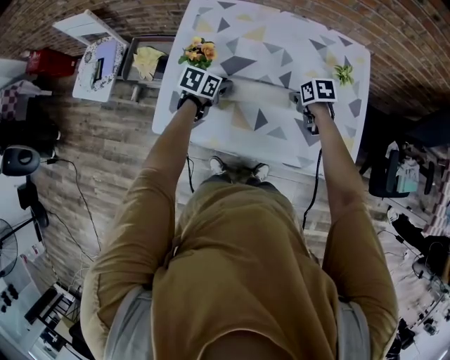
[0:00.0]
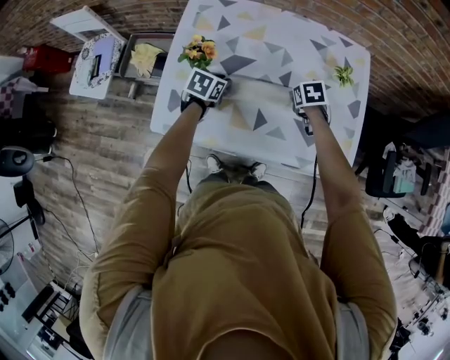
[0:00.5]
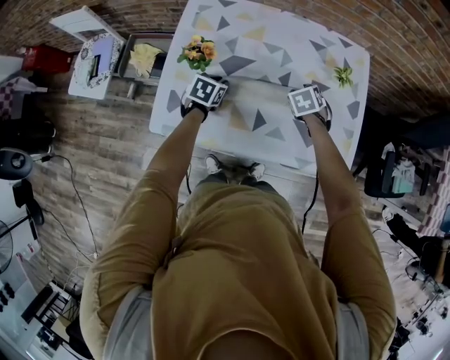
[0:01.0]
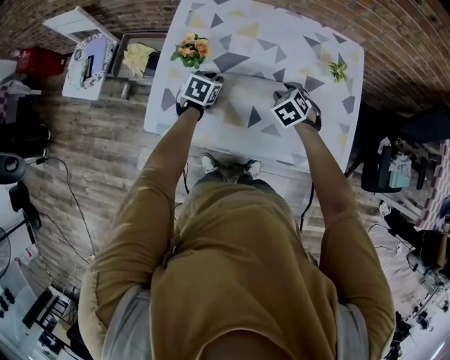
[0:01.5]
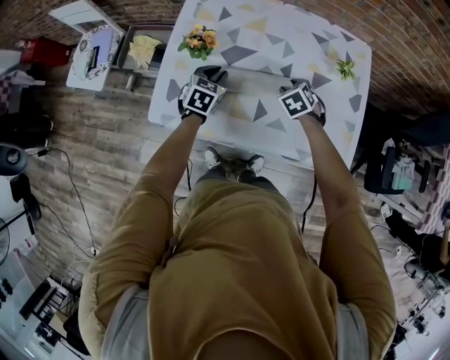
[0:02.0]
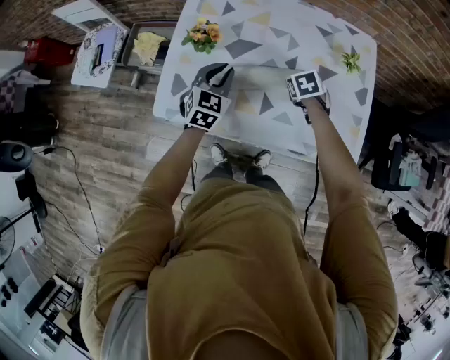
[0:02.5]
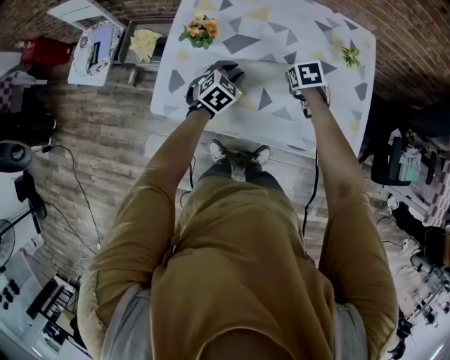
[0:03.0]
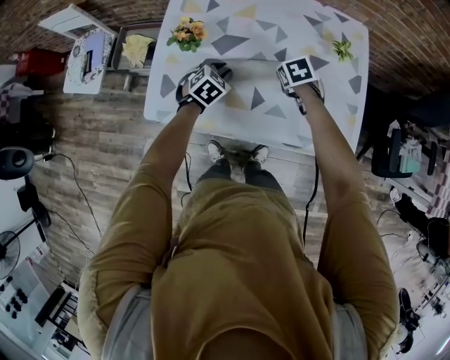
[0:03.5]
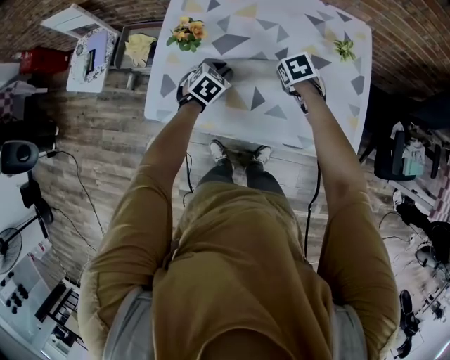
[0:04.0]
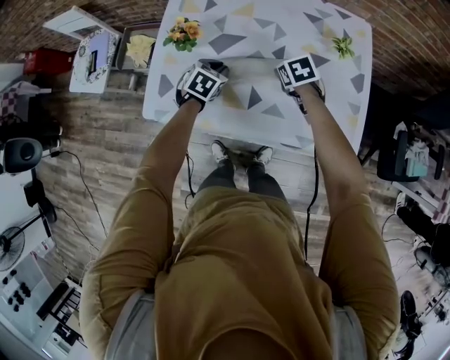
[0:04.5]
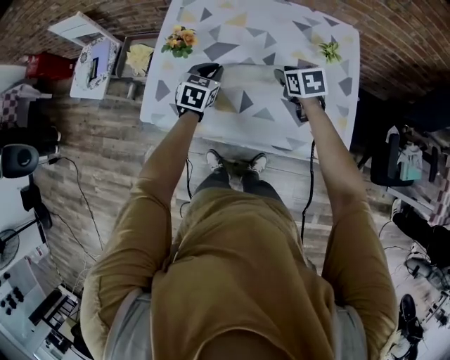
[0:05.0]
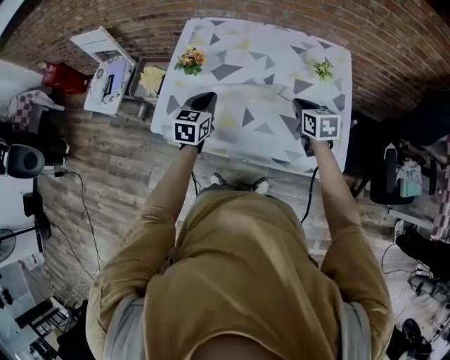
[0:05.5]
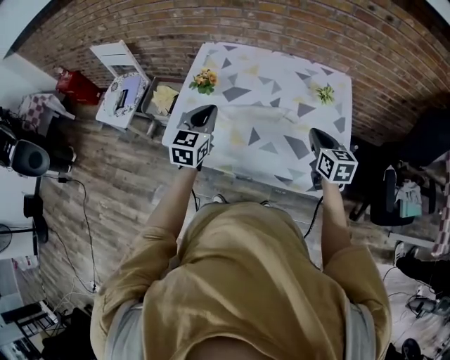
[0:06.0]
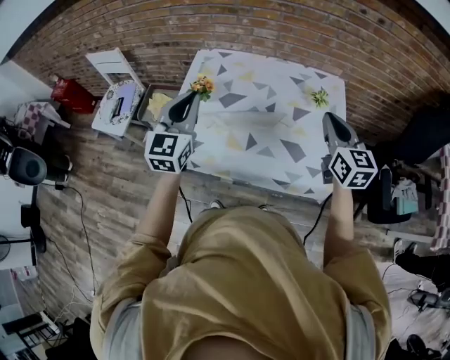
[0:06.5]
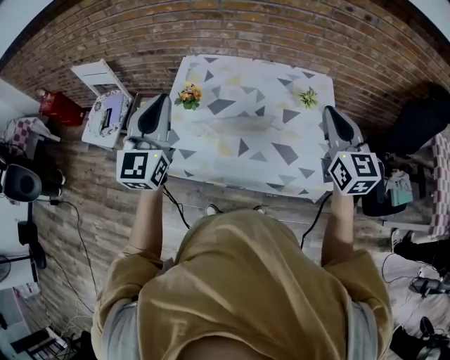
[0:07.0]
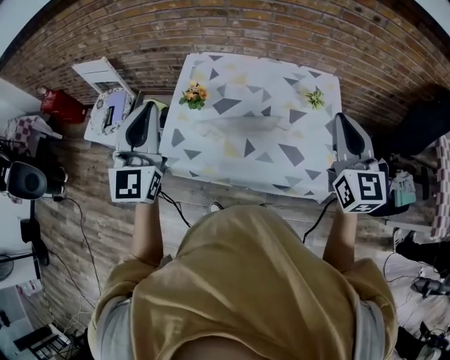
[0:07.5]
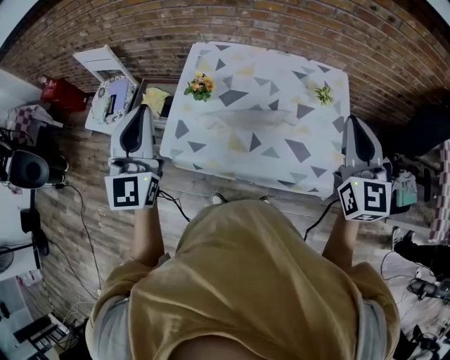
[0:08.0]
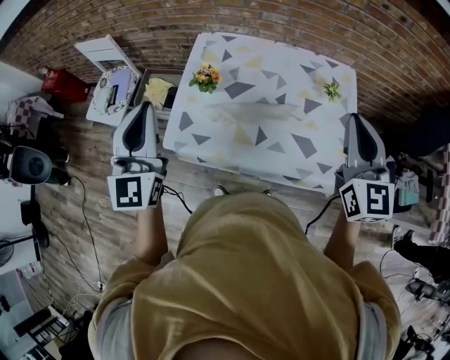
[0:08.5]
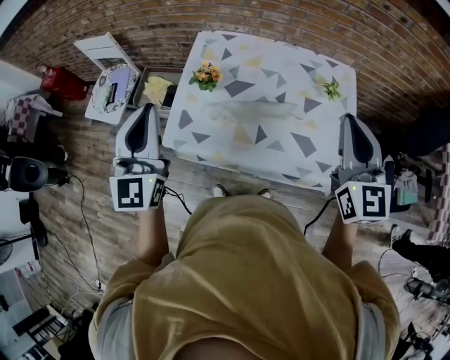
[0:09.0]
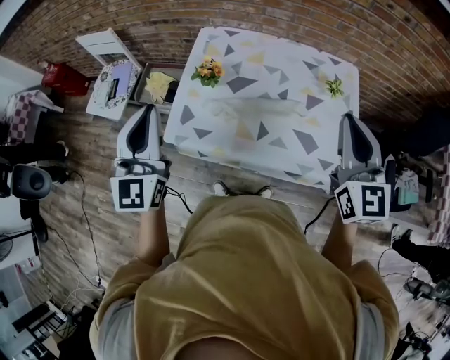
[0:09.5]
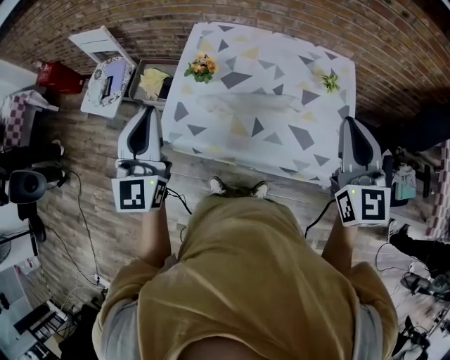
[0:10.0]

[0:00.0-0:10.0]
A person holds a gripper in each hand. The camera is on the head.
0:00.0 to 0:02.0: The right gripper swivels roughly 40 degrees. Meanwhile the left gripper turns by about 30 degrees.
0:02.0 to 0:04.0: The left gripper shifts by about 5 cm, and rotates about 20 degrees.
0:04.0 to 0:06.0: The right gripper shifts some 25 cm upward, backward and to the right, and tips its fingers upward by approximately 50 degrees; the left gripper shifts roughly 20 cm upward, and tilts its fingers about 40 degrees upward.
0:06.0 to 0:08.0: The left gripper goes some 25 cm upward and to the left, and turns by some 30 degrees, while the right gripper heads upward, covering roughly 25 cm, and swivels about 30 degrees.
0:08.0 to 0:10.0: There are only small adjustments of the grippers.

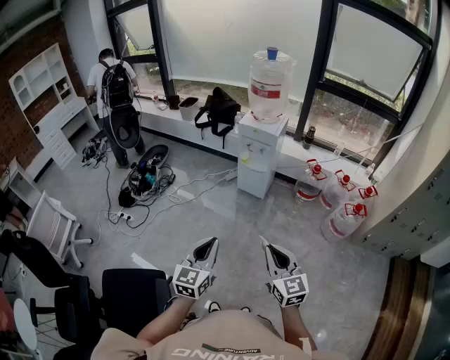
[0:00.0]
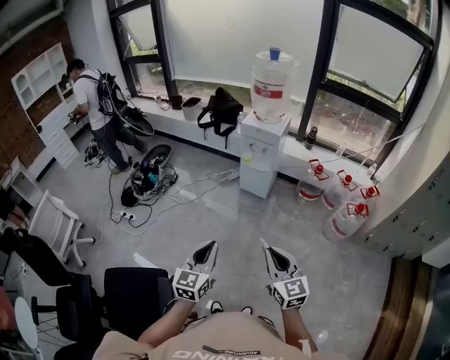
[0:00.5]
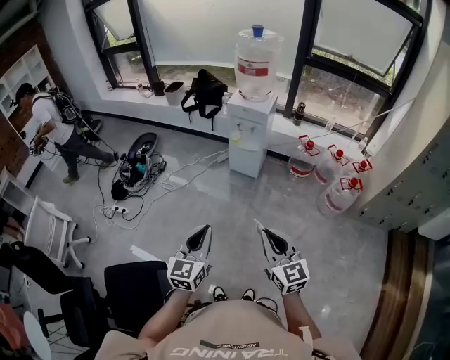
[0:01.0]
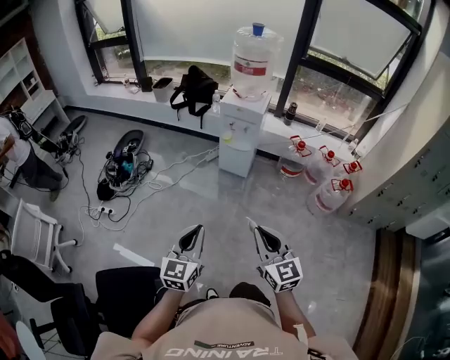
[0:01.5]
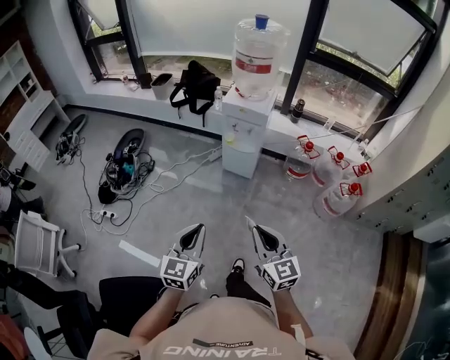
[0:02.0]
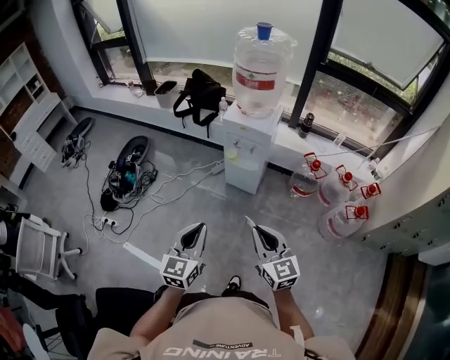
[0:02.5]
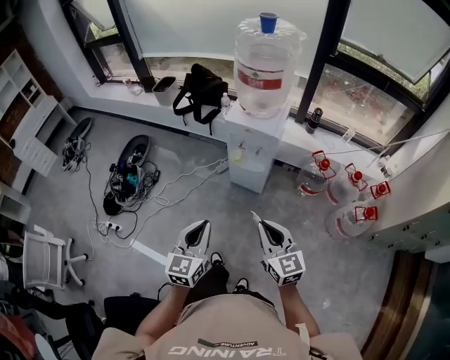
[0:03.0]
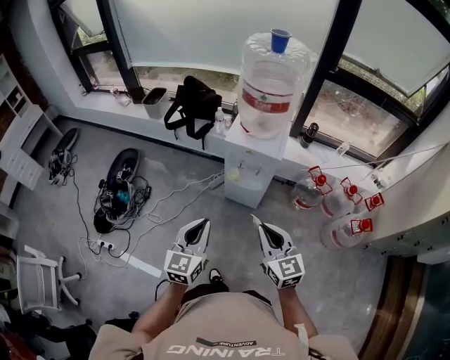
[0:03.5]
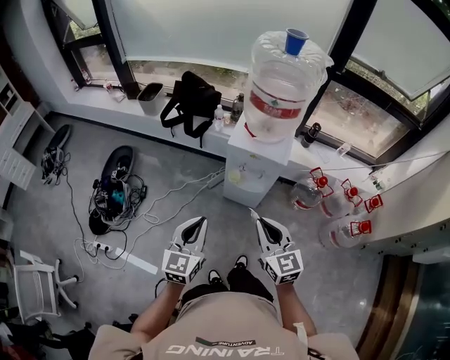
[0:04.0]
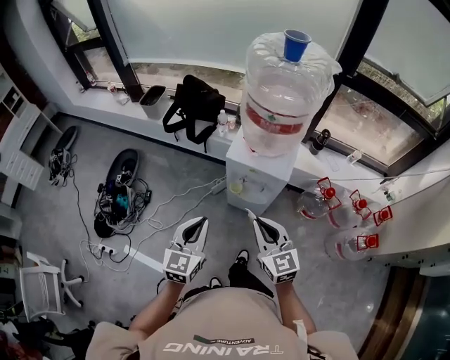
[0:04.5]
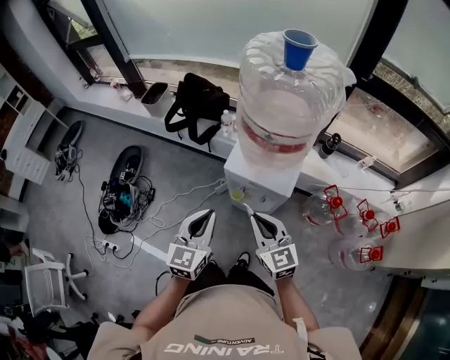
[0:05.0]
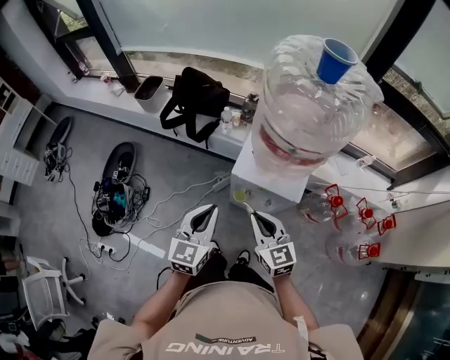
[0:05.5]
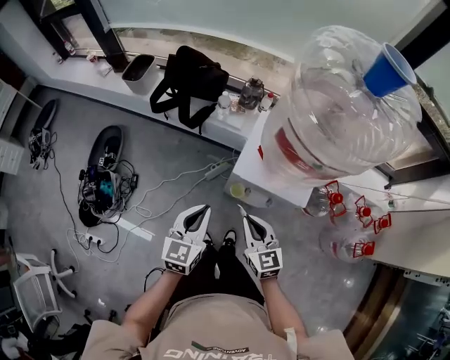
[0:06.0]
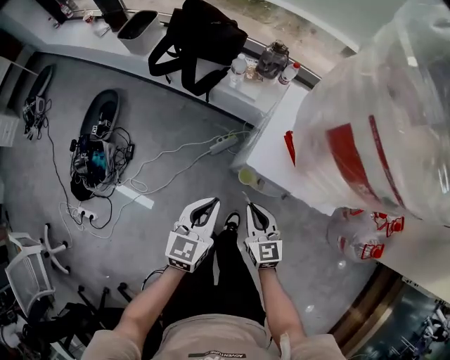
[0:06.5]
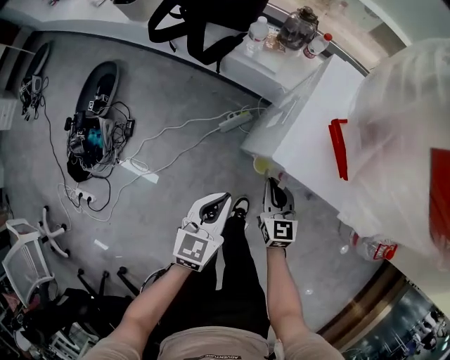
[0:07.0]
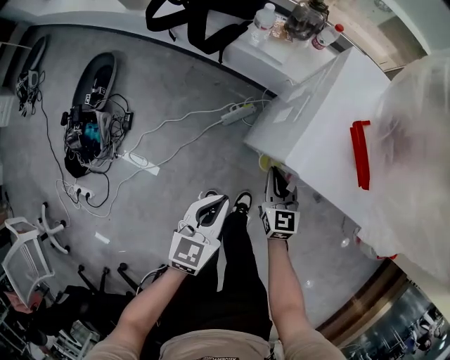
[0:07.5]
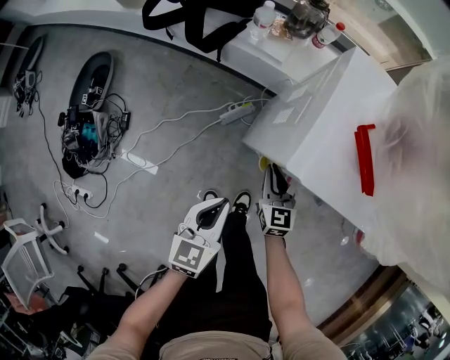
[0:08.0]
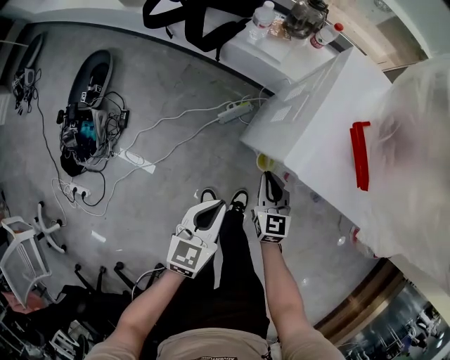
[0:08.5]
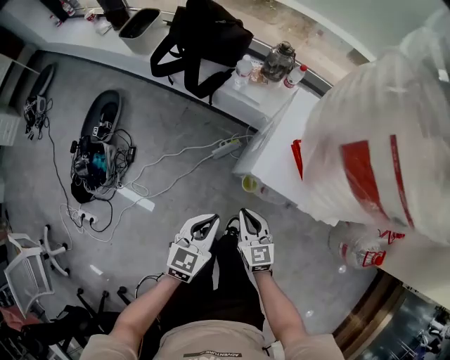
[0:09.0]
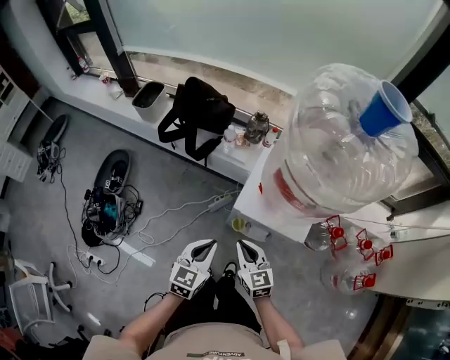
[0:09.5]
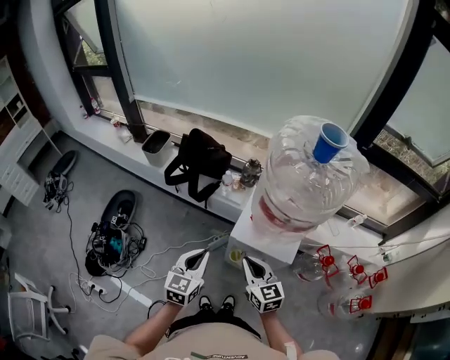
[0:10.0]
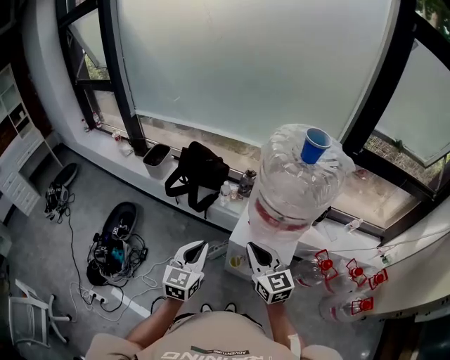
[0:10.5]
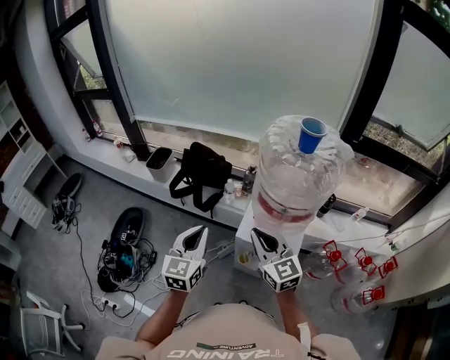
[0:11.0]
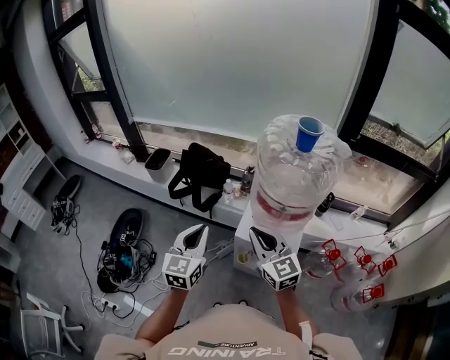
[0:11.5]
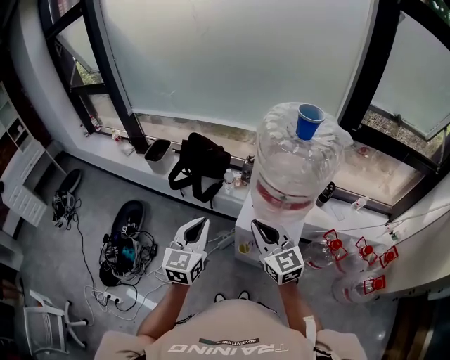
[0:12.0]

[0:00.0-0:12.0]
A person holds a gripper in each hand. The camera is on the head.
0:00.0 to 0:02.0: The left gripper shifts some 15 cm forward. Meanwhile the right gripper shifts approximately 15 cm forward and to the left.
0:02.0 to 0:04.0: The two grippers go approximately 40 cm forward.
0:04.0 to 0:06.0: The right gripper heads forward and downward, covering approximately 30 cm, while the left gripper heads forward, covering about 25 cm.
0:06.0 to 0:08.0: The two grippers go roughly 30 cm downward.
0:08.0 to 0:10.0: Both grippers move upward, about 35 cm.
0:10.0 to 0:12.0: Both grippers travel together upward, roughly 15 cm.

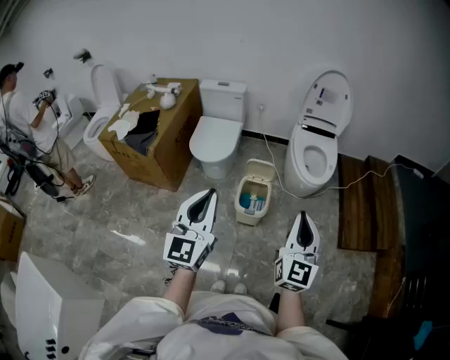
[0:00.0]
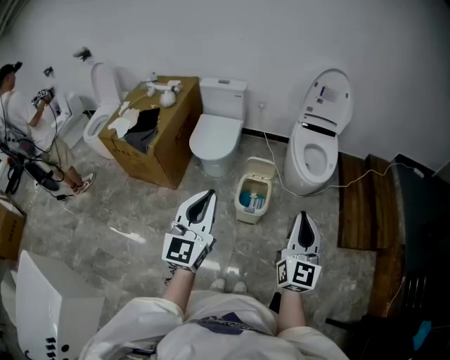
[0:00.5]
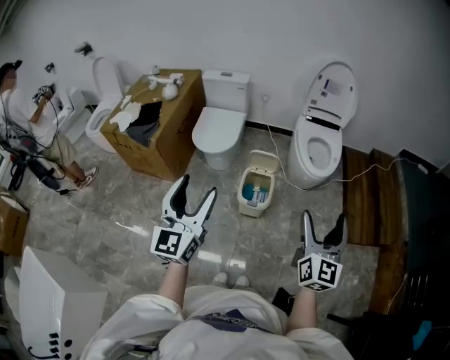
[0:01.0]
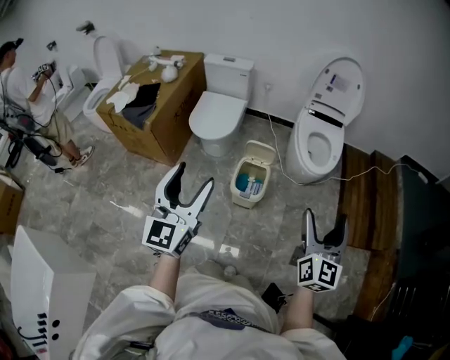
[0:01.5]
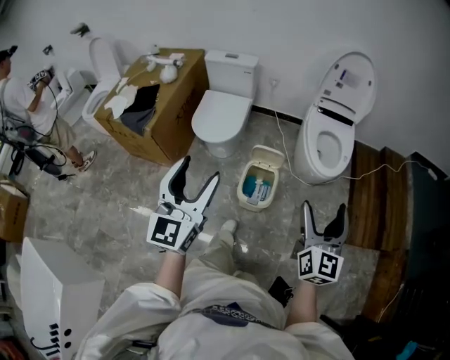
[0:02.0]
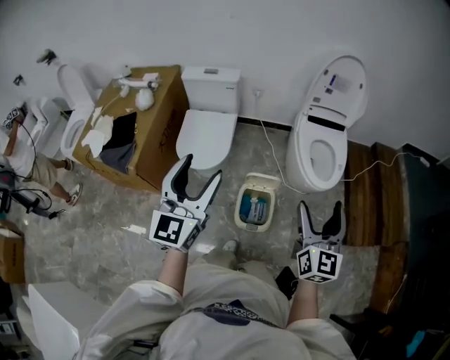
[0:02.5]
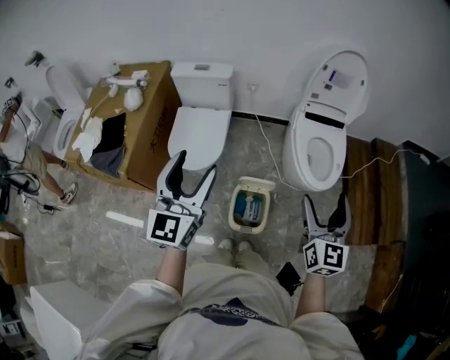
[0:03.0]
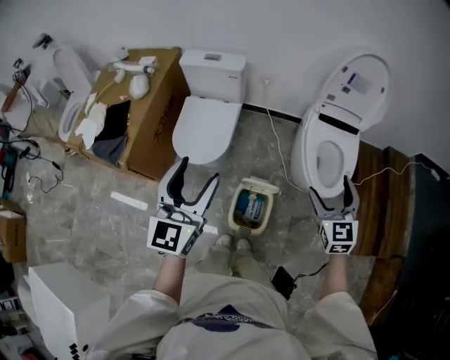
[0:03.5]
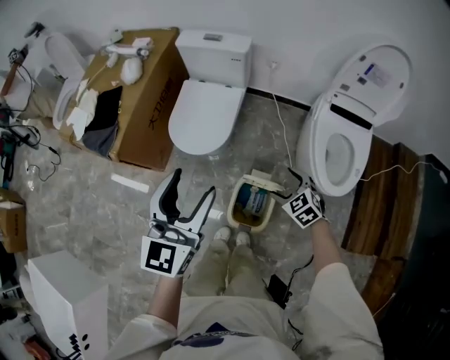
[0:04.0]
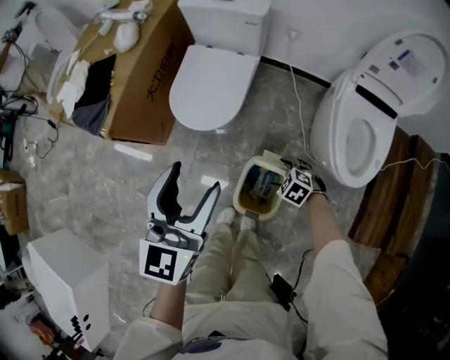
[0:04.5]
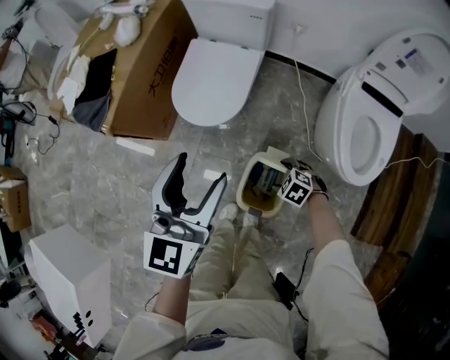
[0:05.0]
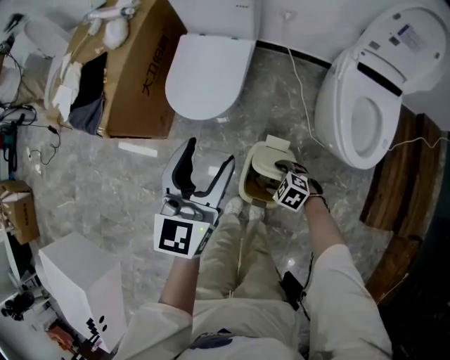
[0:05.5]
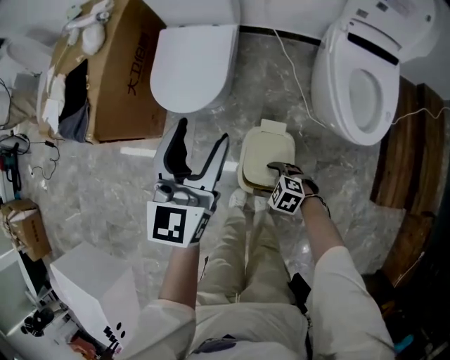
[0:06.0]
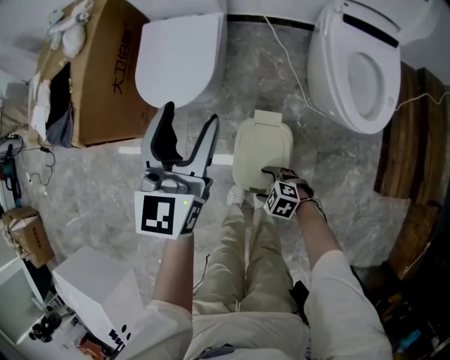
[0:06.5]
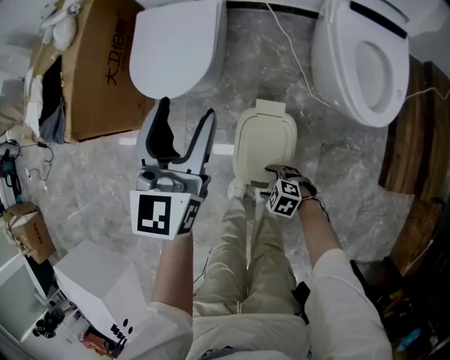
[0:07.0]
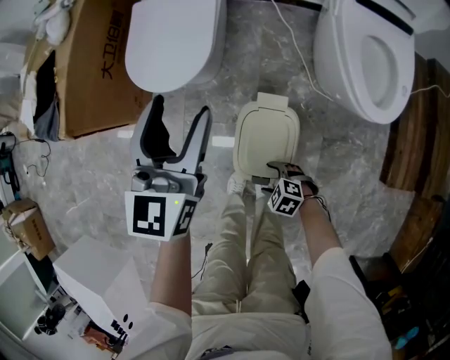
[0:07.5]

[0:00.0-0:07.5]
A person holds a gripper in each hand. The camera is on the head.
0:00.0 to 0:02.0: Both grippers travel together forward, about 10 cm. The right gripper opens its fingers. The left gripper opens.
0:02.0 to 0:04.0: The left gripper ends up roughly 30 cm from where it was, while the right gripper changes place by approximately 50 cm, and tips its fingers downward by about 50 degrees.
0:04.0 to 0:05.5: The right gripper moves downward and to the left, roughly 20 cm, and changes its angle by about 30 degrees, while the left gripper moves downward, some 10 cm.
0:05.5 to 0:07.5: The left gripper heads downward, covering some 10 cm. The right gripper moves downward, backward and to the left, about 20 cm.
